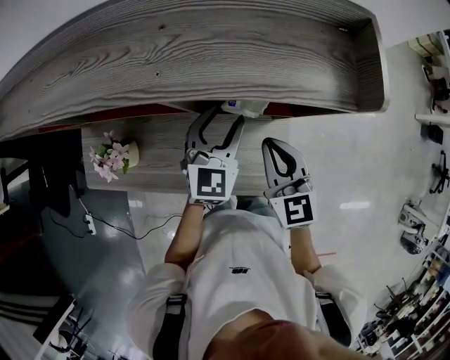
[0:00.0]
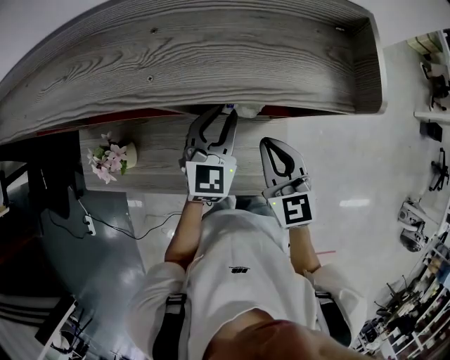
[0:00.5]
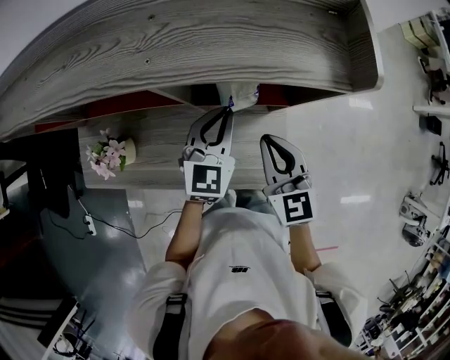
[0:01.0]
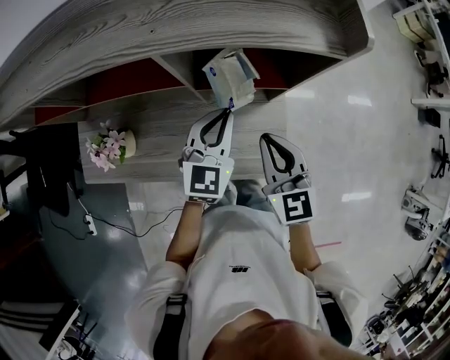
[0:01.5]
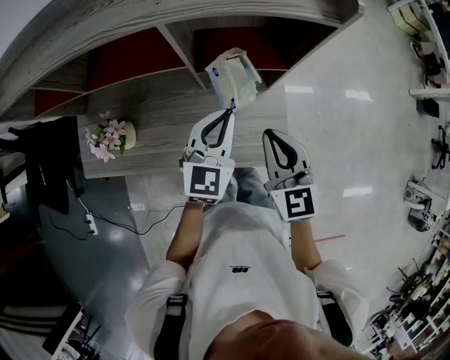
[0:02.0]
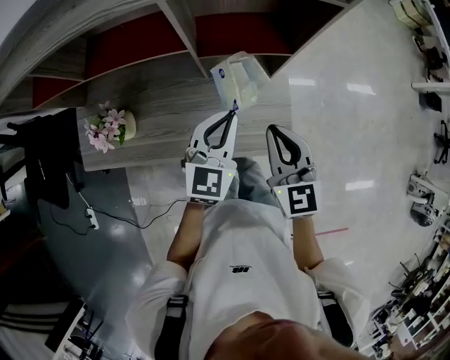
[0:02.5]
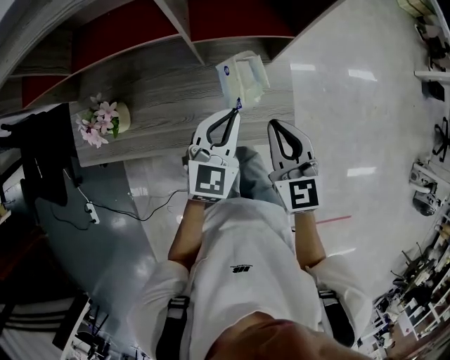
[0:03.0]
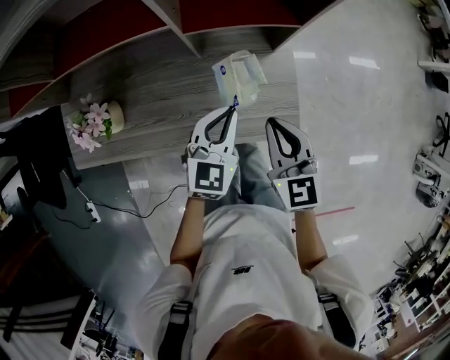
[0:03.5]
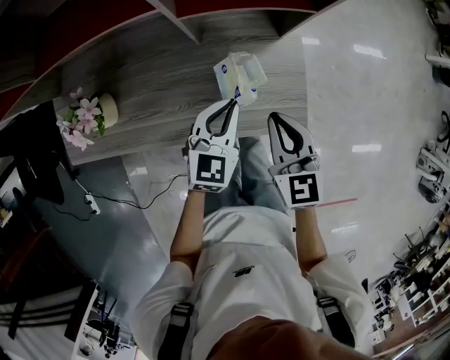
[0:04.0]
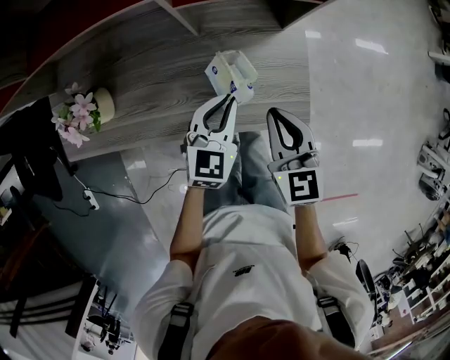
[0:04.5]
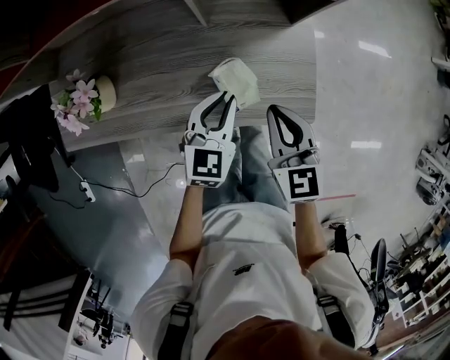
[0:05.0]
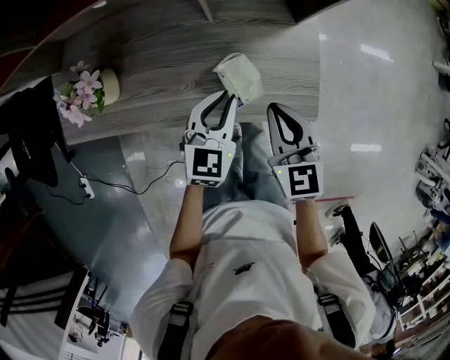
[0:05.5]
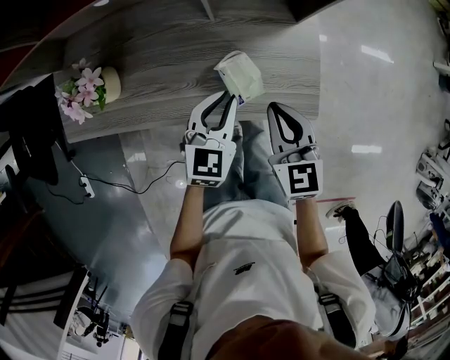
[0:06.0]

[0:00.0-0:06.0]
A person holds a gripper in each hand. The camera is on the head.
0:00.0 to 0:02.0: The grippers both shift backward by about 10 cm. The left gripper closes its fingers.
0:02.0 to 0:04.0: The two grippers go about 15 cm downward.
0:04.0 to 0:06.0: The left gripper ends up approximately 5 cm from where it was.

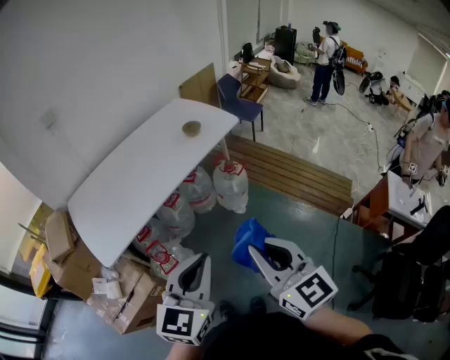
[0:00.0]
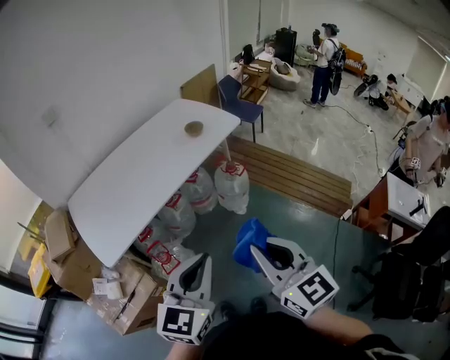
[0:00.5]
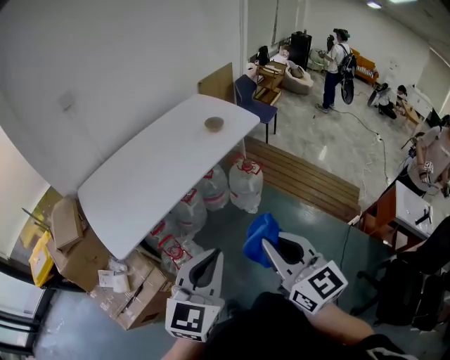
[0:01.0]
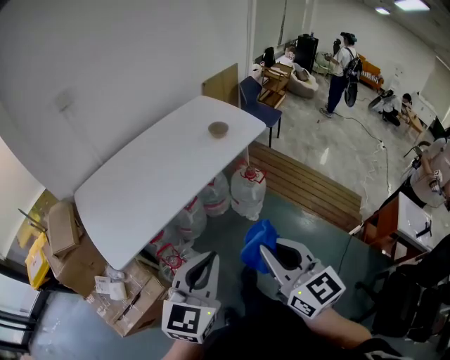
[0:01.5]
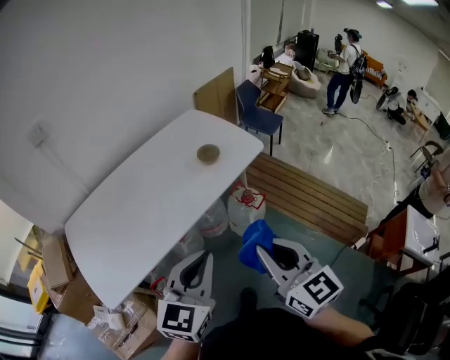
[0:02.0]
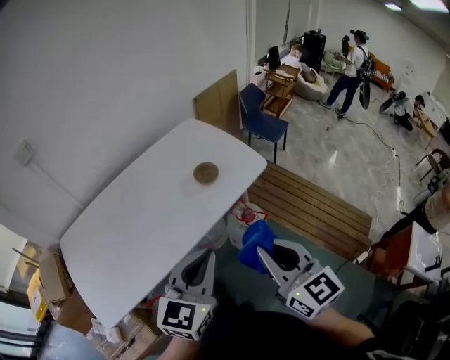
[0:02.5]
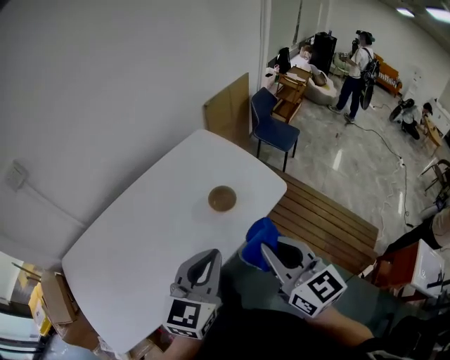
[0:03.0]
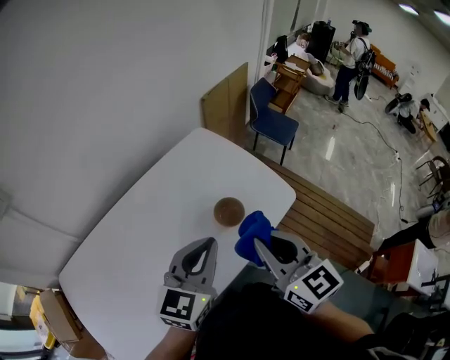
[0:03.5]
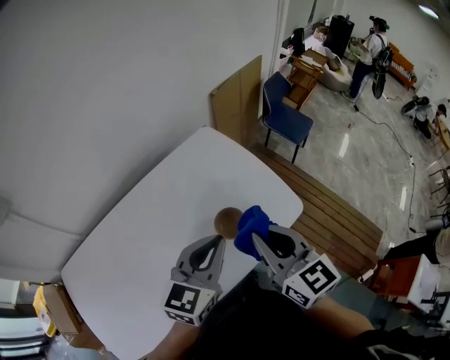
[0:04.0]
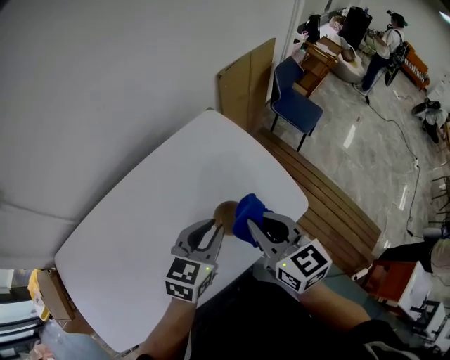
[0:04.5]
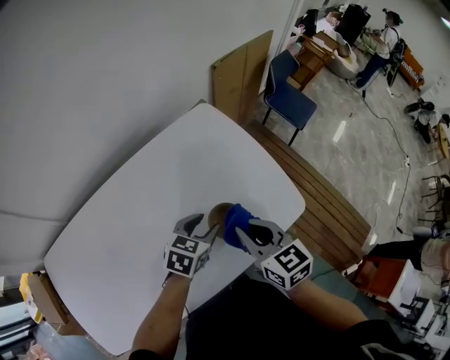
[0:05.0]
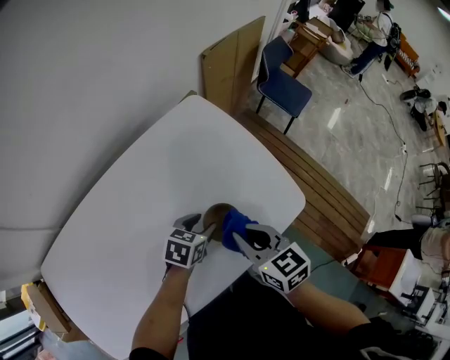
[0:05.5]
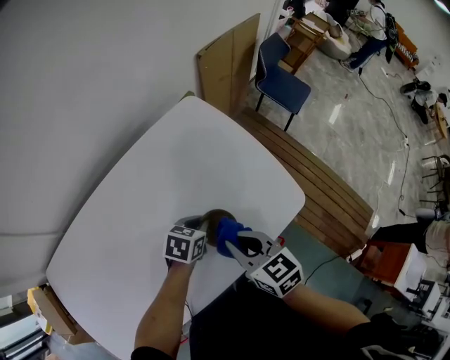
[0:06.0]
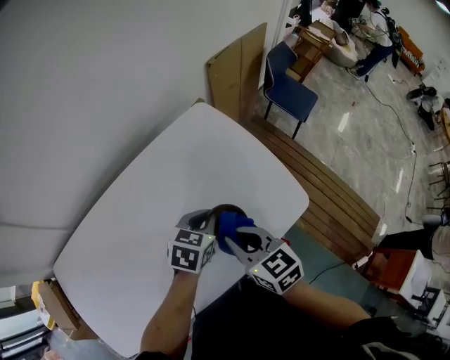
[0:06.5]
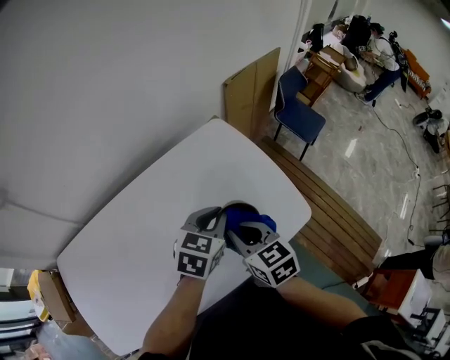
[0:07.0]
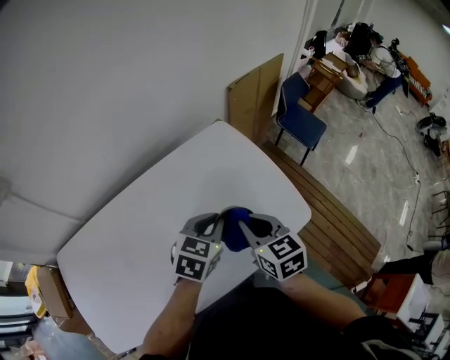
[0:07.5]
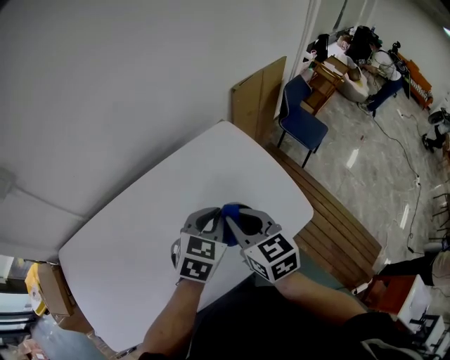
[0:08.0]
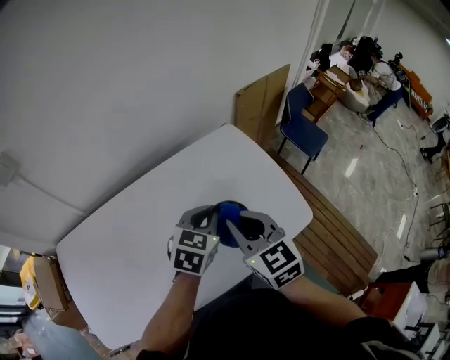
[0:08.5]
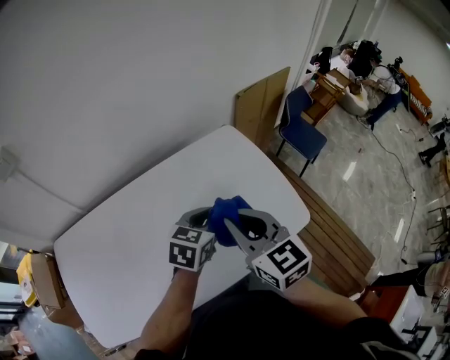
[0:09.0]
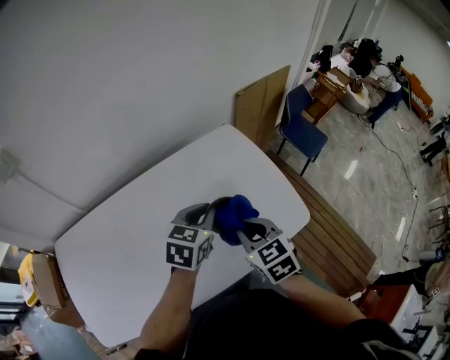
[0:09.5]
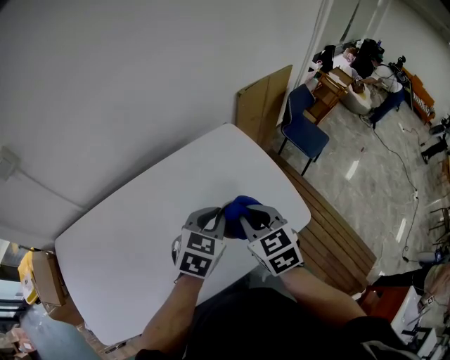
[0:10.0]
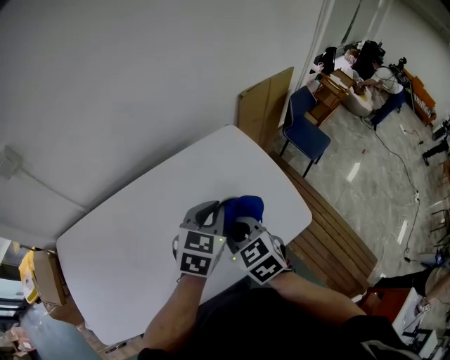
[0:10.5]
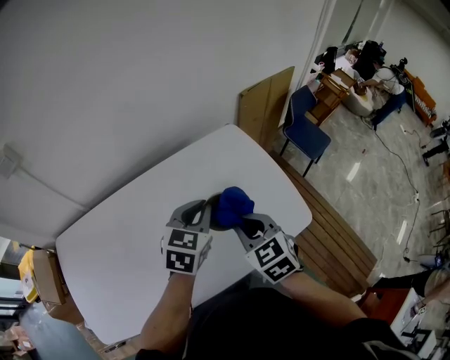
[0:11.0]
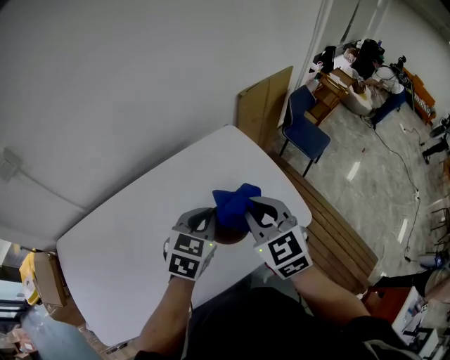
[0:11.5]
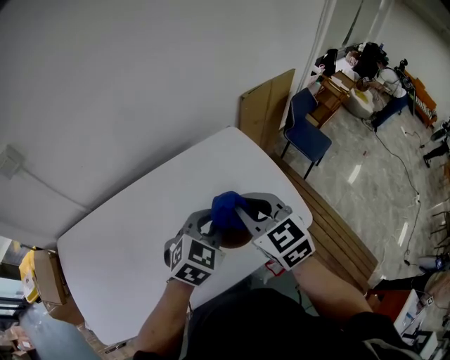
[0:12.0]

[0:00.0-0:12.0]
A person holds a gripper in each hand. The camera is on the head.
0:00.0 to 0:02.0: The two grippers go about 25 cm forward.
0:02.0 to 0:04.0: The two grippers travel together, forward, some 40 cm.
0:04.0 to 0:06.0: The left gripper is displaced downward by approximately 25 cm, angles its fingers downward, by about 40 degrees, and opens and closes again. The right gripper heads downward, covering some 20 cm, and rotates about 20 degrees.
0:06.0 to 0:08.0: The left gripper moves upward, about 20 cm, and changes its angle by roughly 30 degrees, while the right gripper heads upward, covering about 10 cm.
0:08.0 to 0:10.0: The right gripper travels upward and back again, roughly 5 cm each way.
0:10.0 to 0:12.0: The right gripper travels upward by about 5 cm.

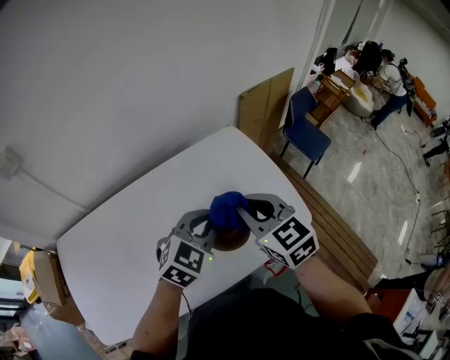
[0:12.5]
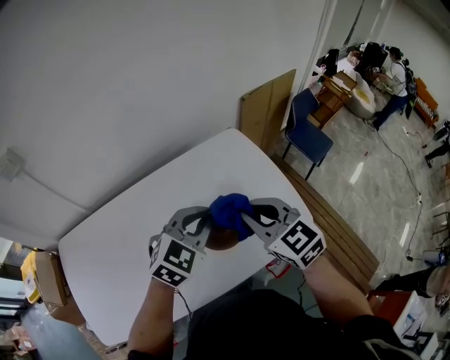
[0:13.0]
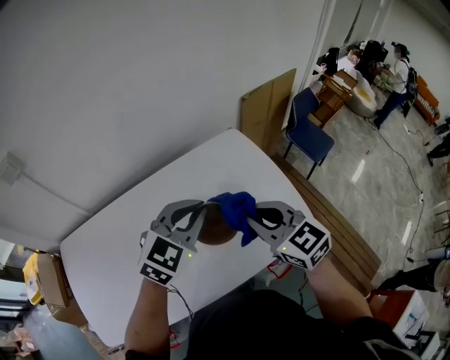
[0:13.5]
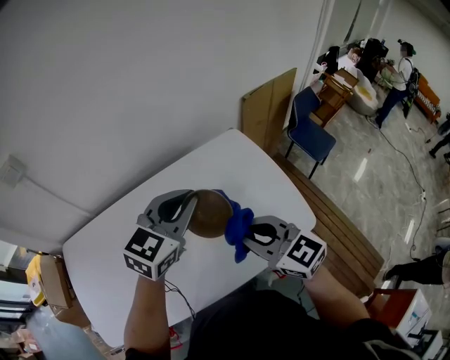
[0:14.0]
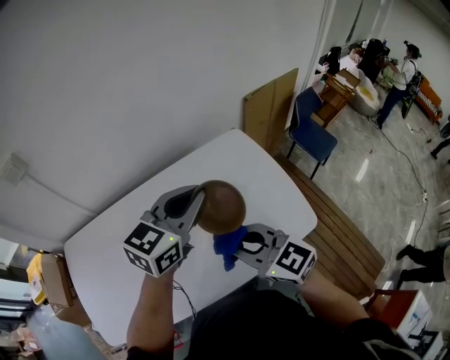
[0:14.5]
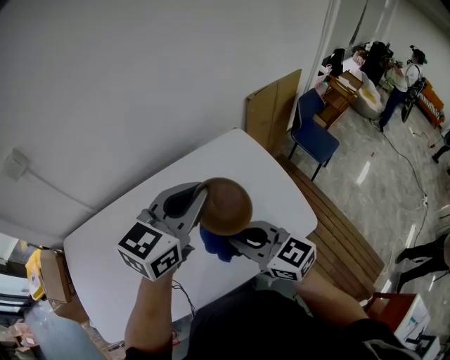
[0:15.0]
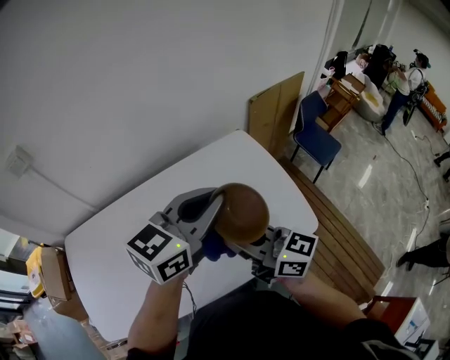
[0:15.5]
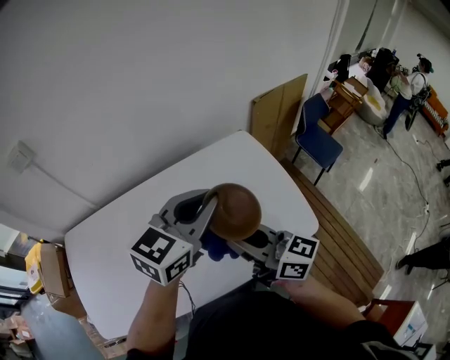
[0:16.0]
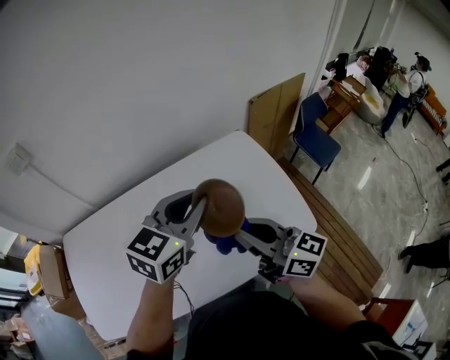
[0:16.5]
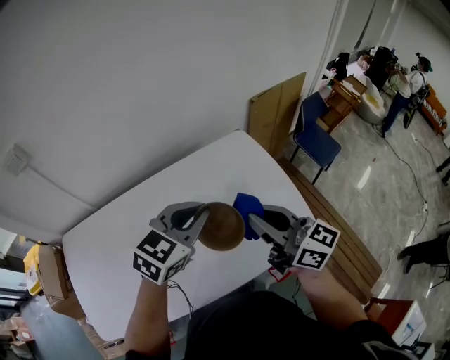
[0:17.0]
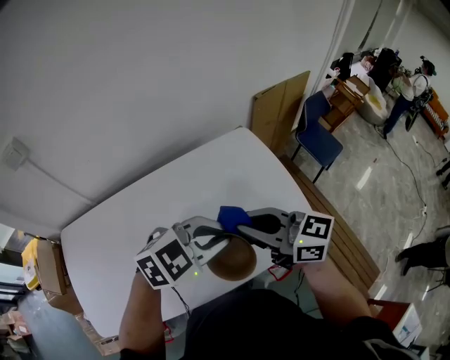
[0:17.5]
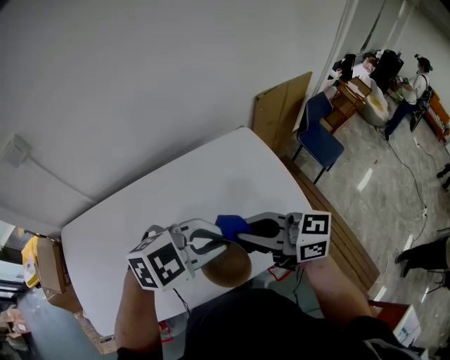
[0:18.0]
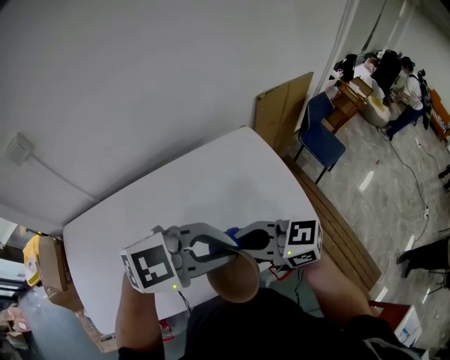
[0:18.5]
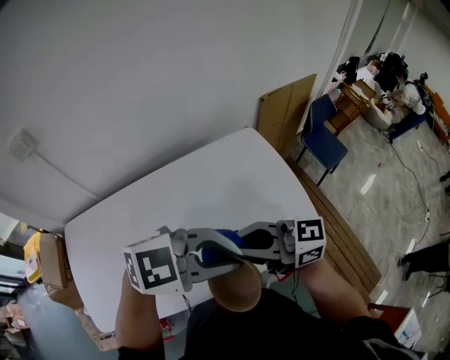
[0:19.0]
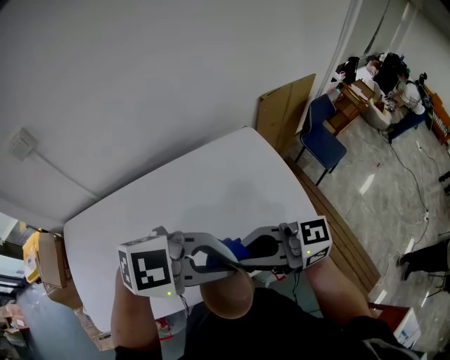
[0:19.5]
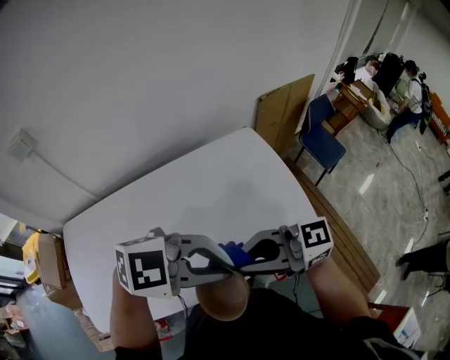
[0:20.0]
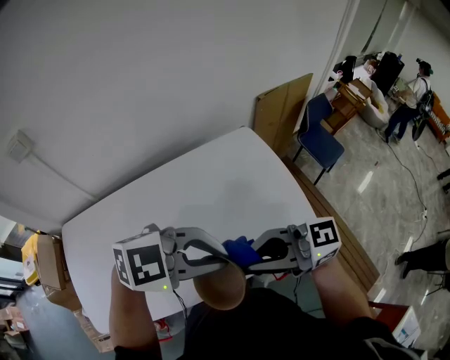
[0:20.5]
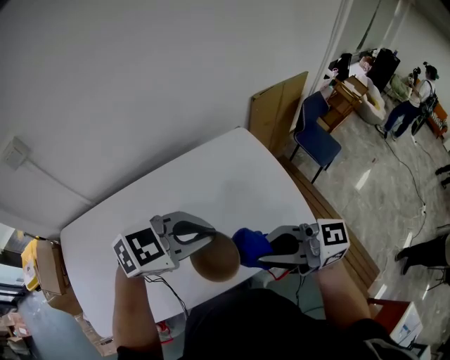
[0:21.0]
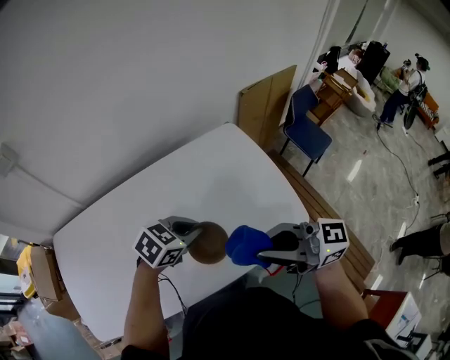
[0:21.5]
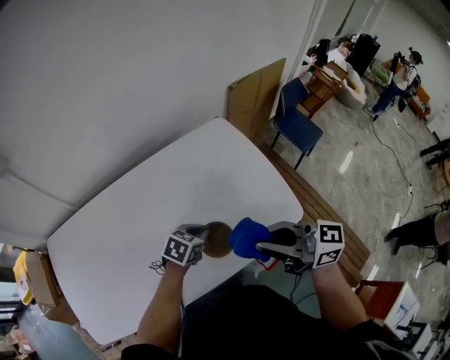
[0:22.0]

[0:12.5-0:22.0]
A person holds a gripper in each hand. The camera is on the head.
0:12.5 to 0:14.5: The left gripper heads upward and forward, covering some 10 cm, and turns by roughly 30 degrees; the right gripper goes roughly 10 cm backward and to the left, and swivels some 30 degrees.
0:14.5 to 0:16.5: The right gripper changes place by about 5 cm, and swivels approximately 30 degrees.
0:16.5 to 0:18.0: The left gripper shifts by about 10 cm, and changes its angle by roughly 50 degrees. Meanwhile the right gripper swivels approximately 20 degrees.
0:18.0 to 0:20.0: The right gripper shifts by approximately 10 cm, and changes its angle by approximately 30 degrees. The left gripper moves some 10 cm, and changes its angle by about 20 degrees.
0:20.0 to 0:22.0: The left gripper heads downward, covering some 30 cm, and twists some 50 degrees counterclockwise, seen from behind. The right gripper moves about 10 cm, and changes its angle by approximately 30 degrees.
